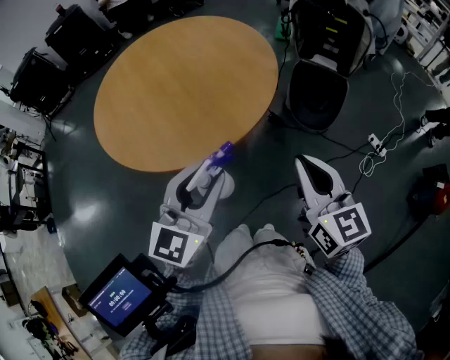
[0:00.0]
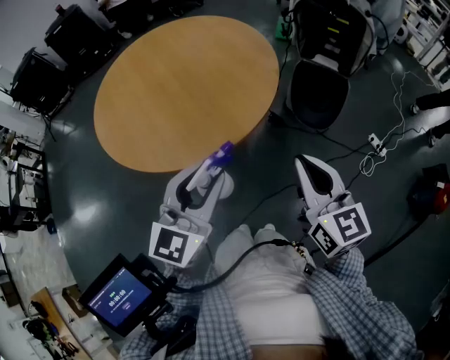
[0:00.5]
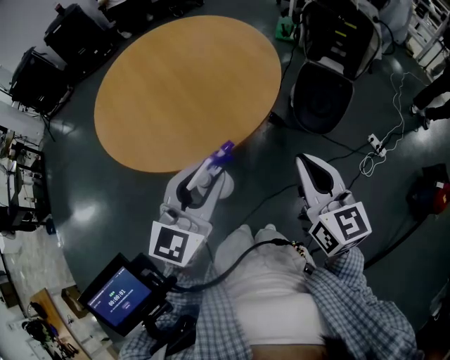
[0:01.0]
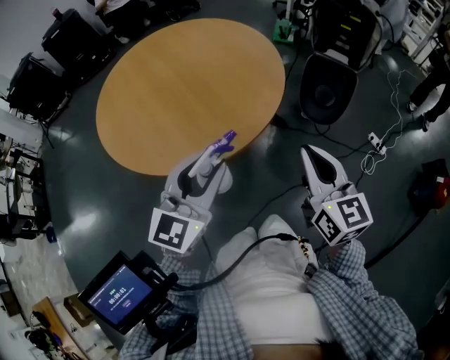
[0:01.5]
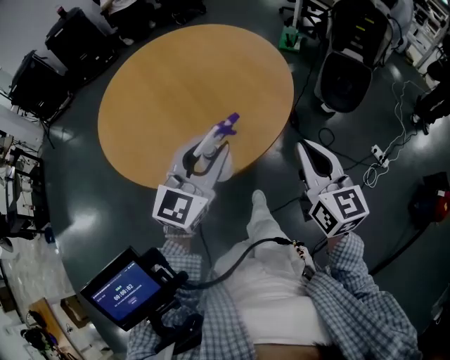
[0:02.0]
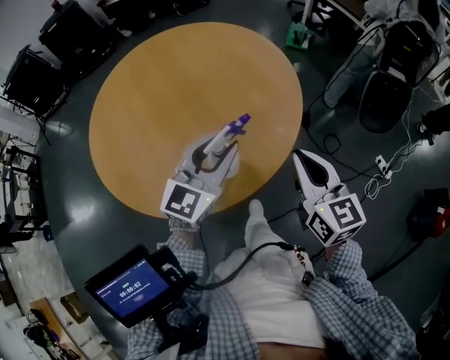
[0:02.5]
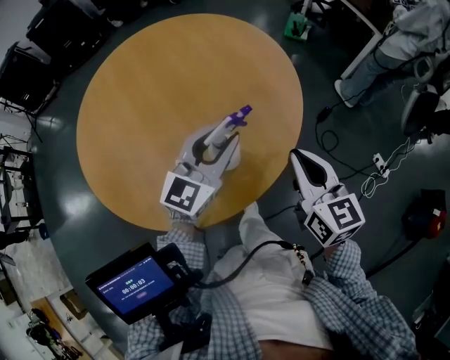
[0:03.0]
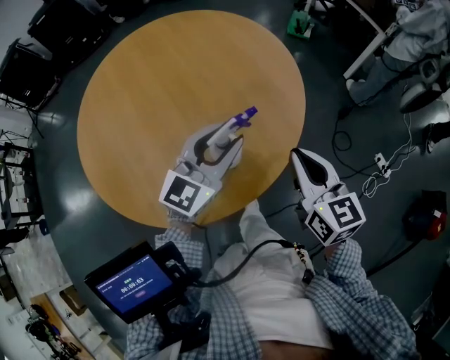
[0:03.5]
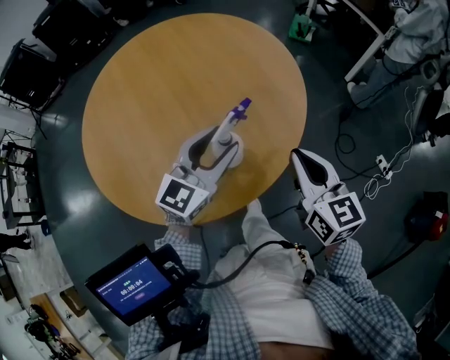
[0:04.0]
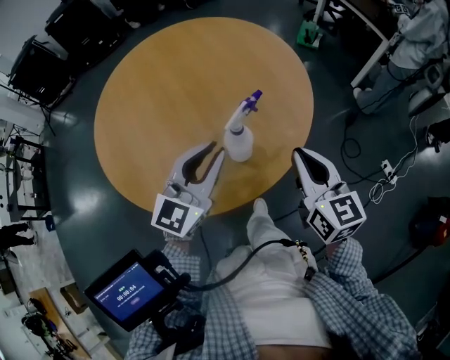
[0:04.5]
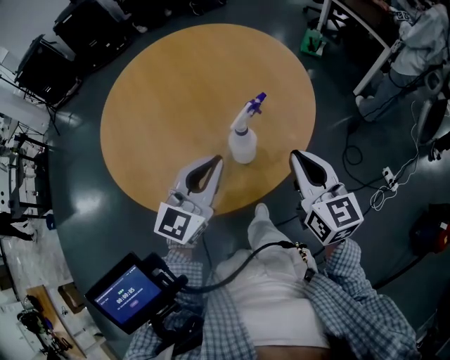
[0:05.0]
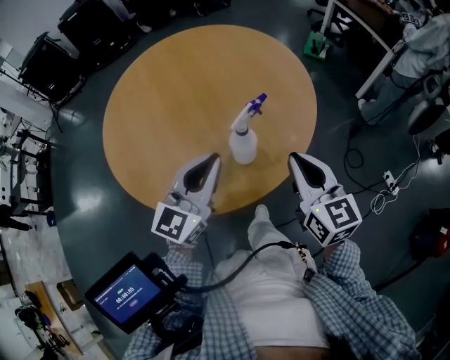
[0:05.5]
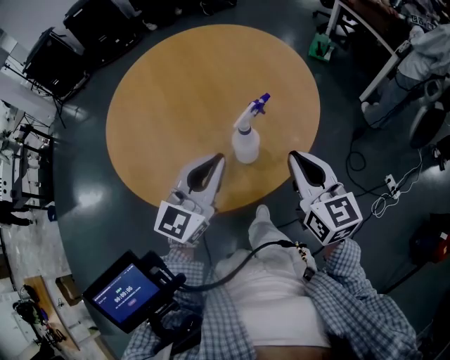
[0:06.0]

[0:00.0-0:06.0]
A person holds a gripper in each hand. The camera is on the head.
0:00.0 to 0:02.0: The right gripper shifts approximately 10 cm forward; the left gripper travels forward and to the left by about 15 cm.
0:02.0 to 0:04.0: Both grippers travel together forward and downward, roughly 15 cm.
0:04.0 to 0:06.0: The left gripper goes approximately 10 cm backward and upward, and closes its fingers. Meanwhile the right gripper shifts by about 5 cm.

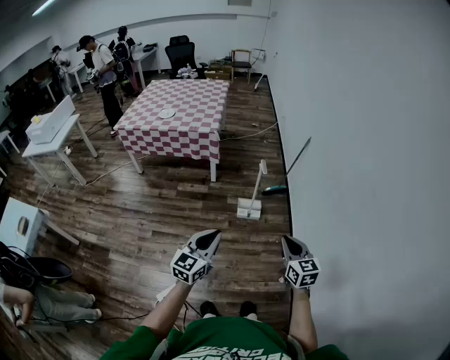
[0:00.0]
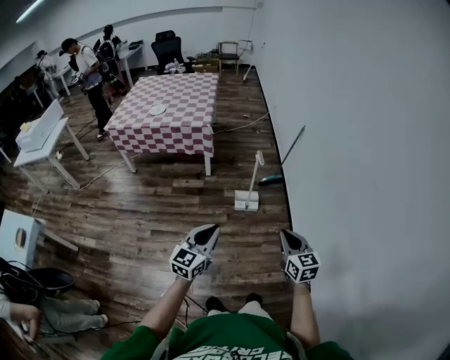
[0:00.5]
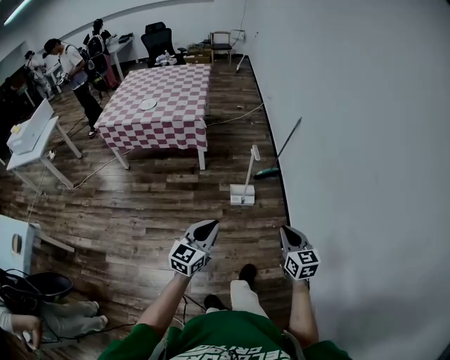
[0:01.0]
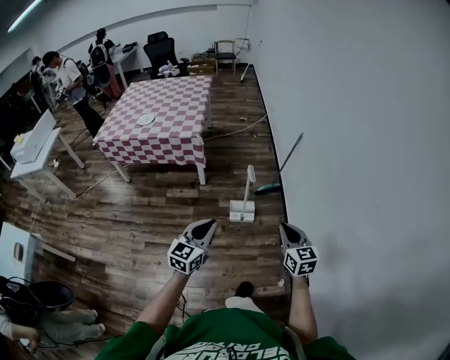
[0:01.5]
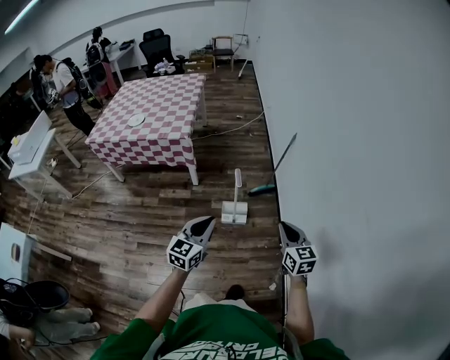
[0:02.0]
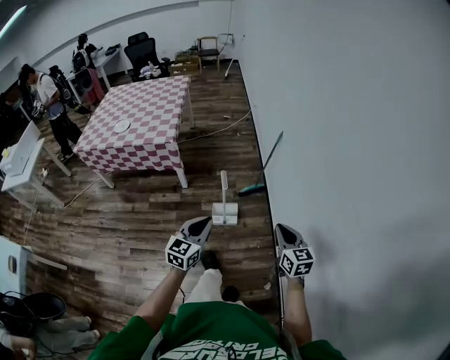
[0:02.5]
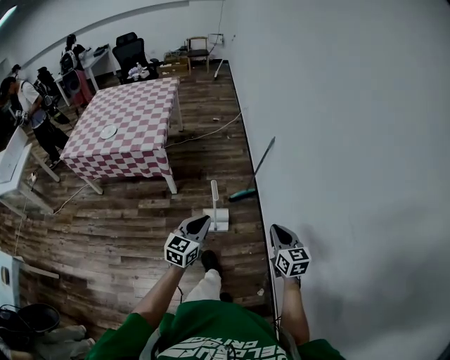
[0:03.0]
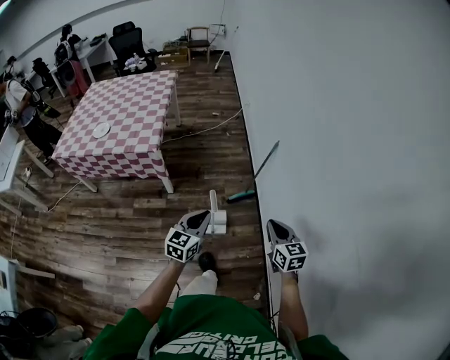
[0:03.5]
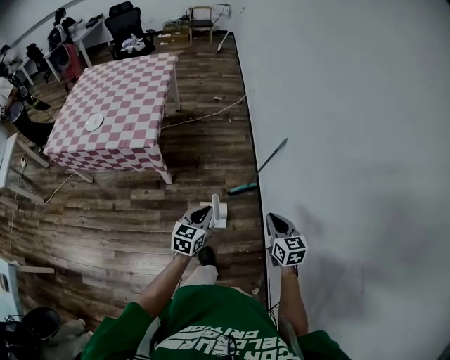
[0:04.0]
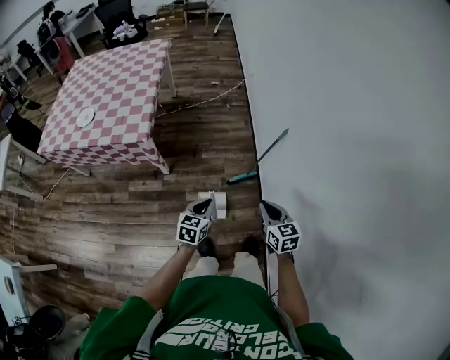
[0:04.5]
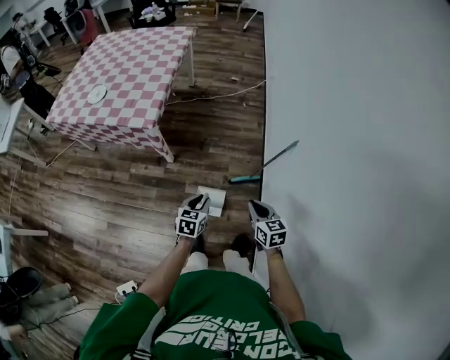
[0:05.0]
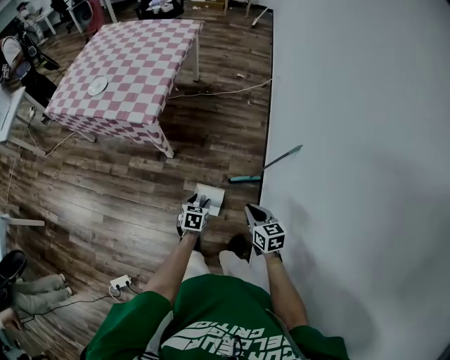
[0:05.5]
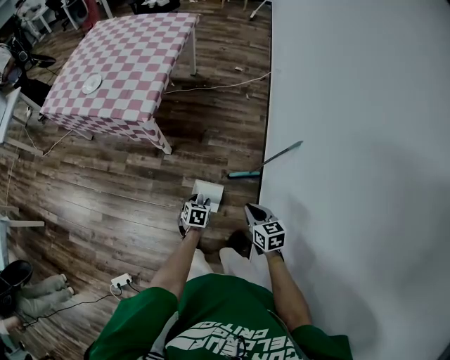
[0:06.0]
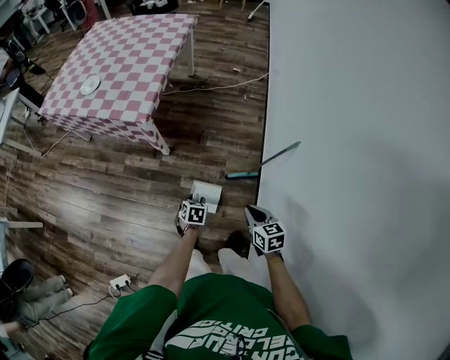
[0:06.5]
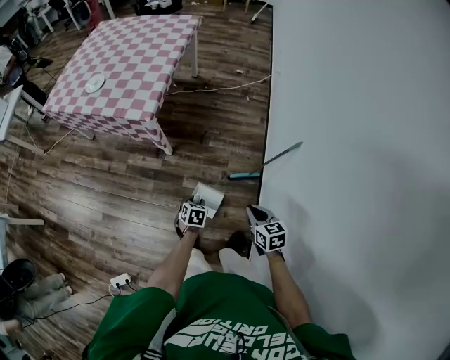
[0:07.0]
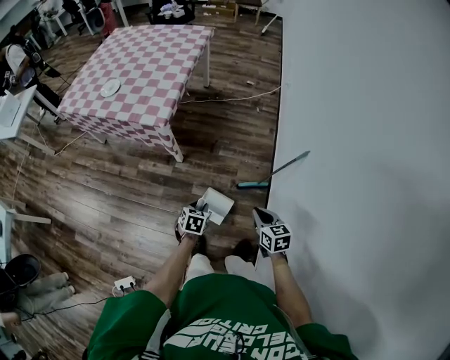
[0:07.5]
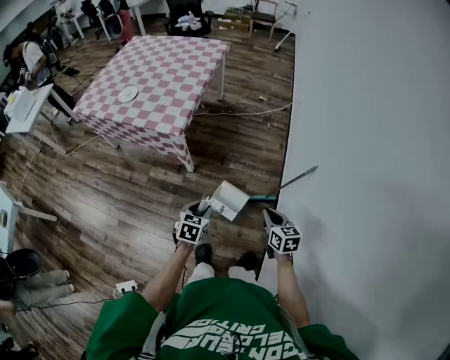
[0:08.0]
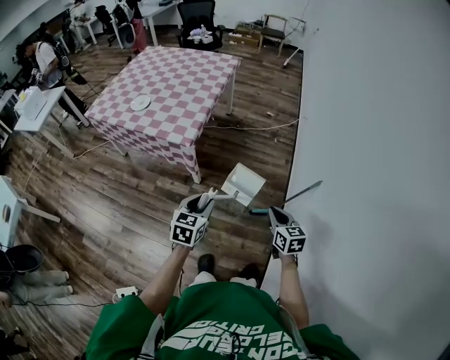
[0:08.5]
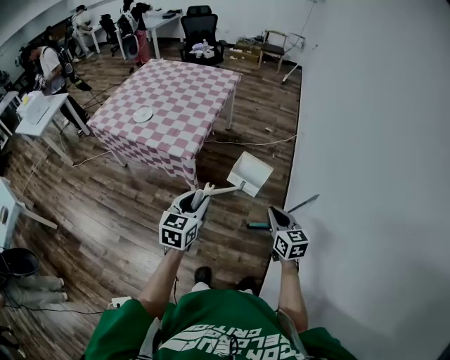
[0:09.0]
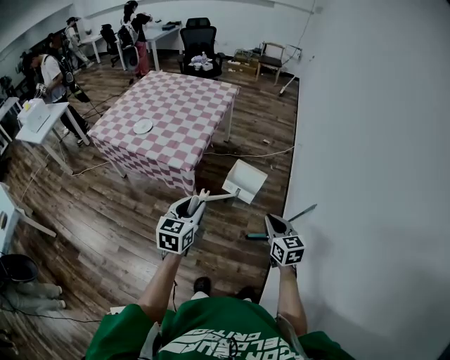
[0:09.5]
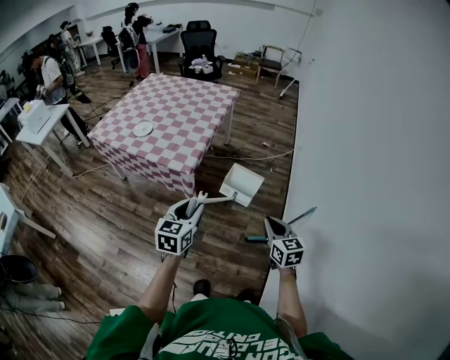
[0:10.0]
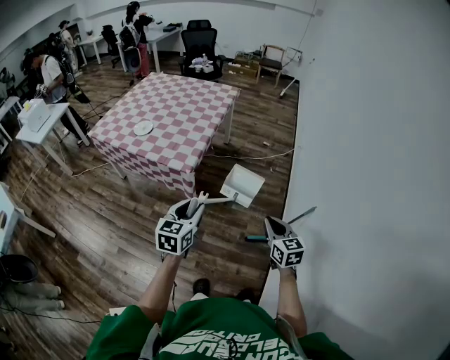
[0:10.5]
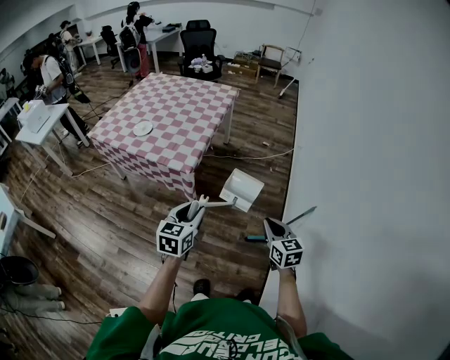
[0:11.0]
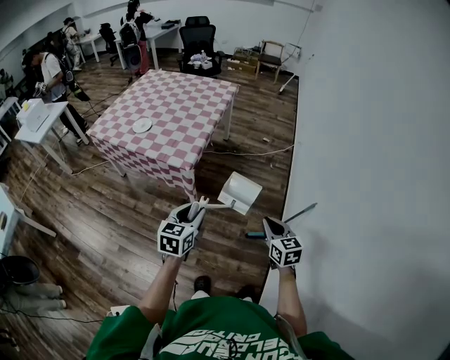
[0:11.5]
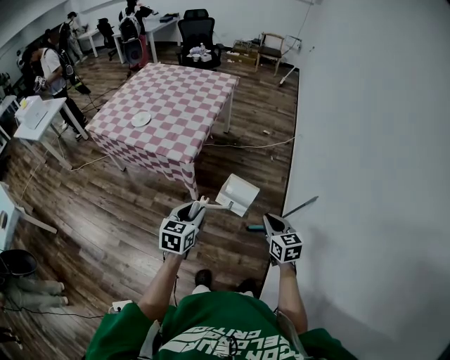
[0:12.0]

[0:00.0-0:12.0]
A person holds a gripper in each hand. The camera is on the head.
0:00.0 to 0:02.0: The right gripper moves forward and to the right, roughly 25 cm; the left gripper moves forward, approximately 25 cm.
0:02.0 to 0:04.0: Both grippers travel together forward, some 30 cm.
0:04.0 to 0:06.0: The left gripper goes about 25 cm downward and forward, angles its fingers downward, by some 30 degrees, and opens up. The right gripper heads forward and downward, covering some 20 cm, and rotates approximately 20 degrees.
0:06.0 to 0:08.0: The right gripper travels upward by about 5 cm. The left gripper heads upward and to the left, covering roughly 20 cm.
0:08.0 to 0:10.0: The right gripper heads upward and forward, covering about 15 cm. The left gripper is displaced upward by about 20 cm, and rotates roughly 30 degrees.
0:10.0 to 0:12.0: The left gripper shifts approximately 5 cm downward.

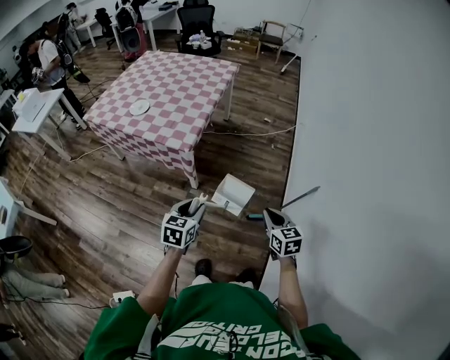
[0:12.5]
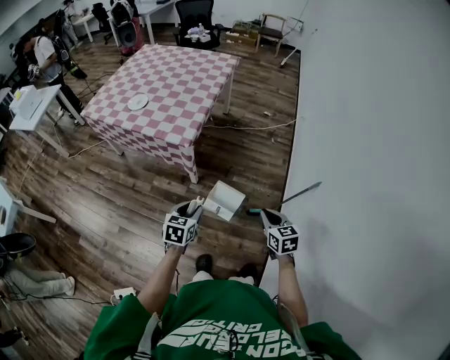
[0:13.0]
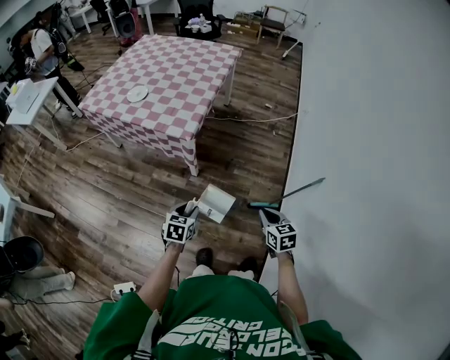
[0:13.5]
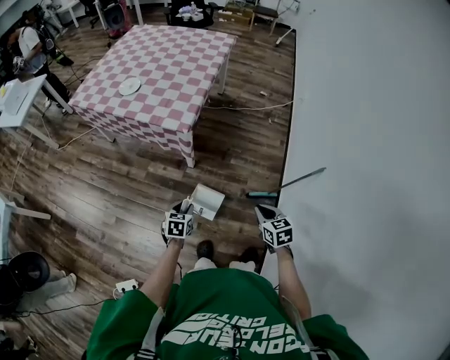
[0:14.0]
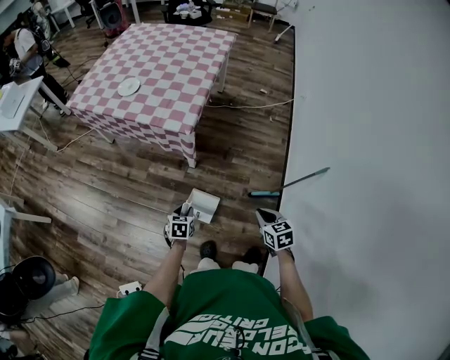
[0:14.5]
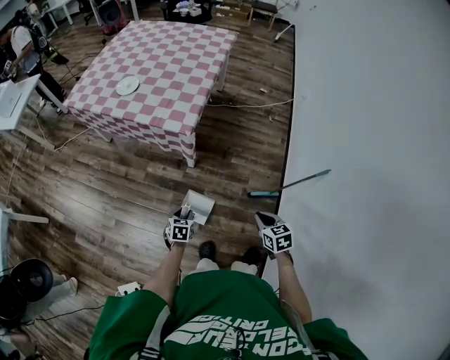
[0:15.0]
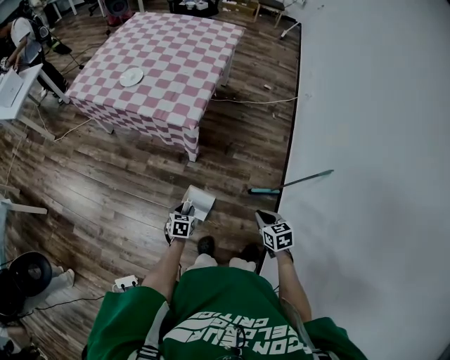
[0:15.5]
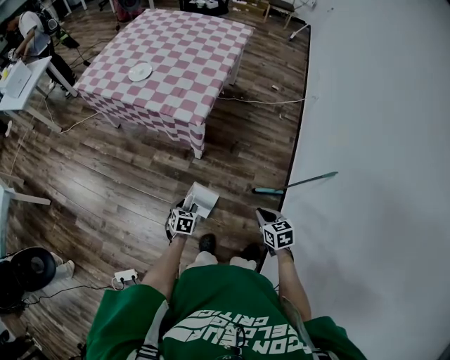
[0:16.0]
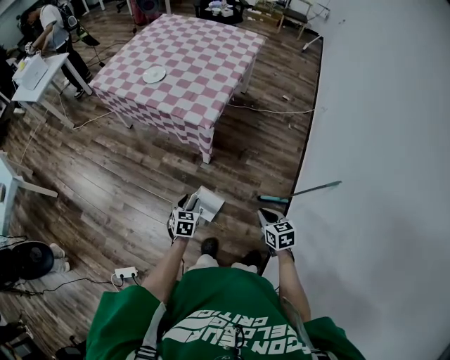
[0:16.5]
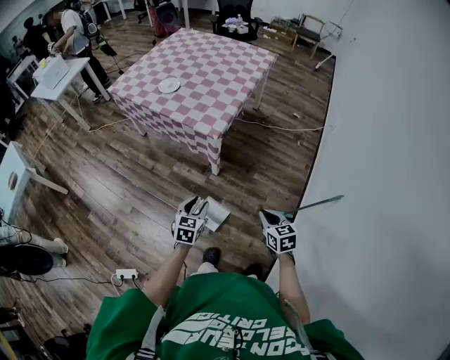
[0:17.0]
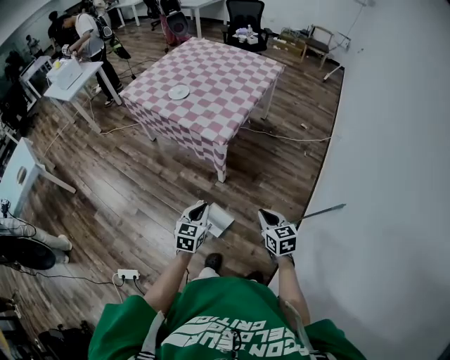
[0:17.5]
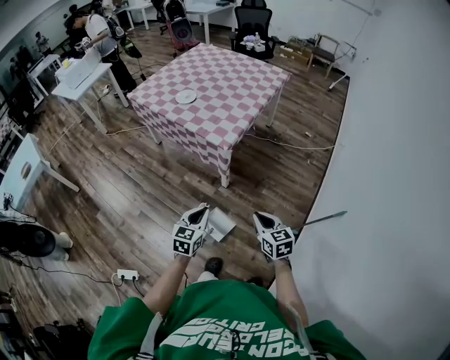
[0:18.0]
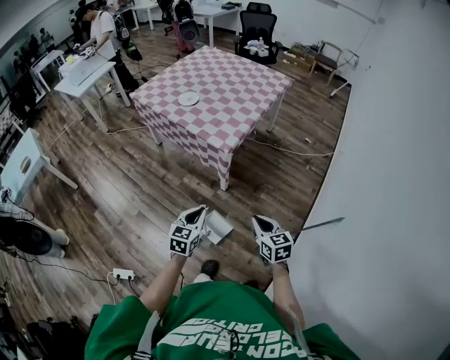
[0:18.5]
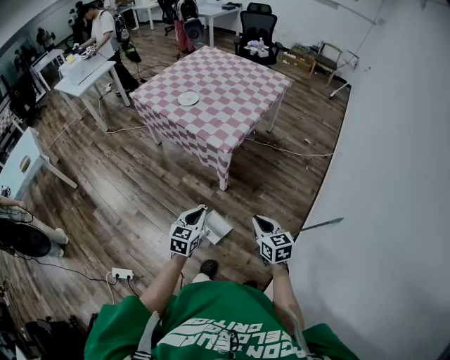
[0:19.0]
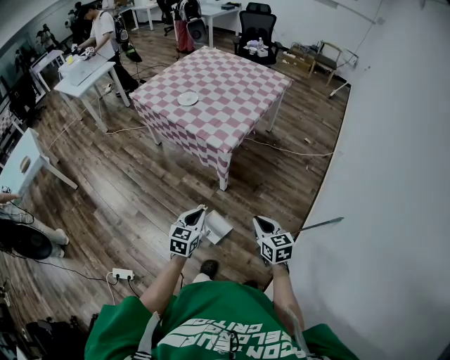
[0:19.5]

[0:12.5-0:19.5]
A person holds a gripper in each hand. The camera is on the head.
0:12.5 to 0:14.5: The right gripper heads downward and to the left, covering roughly 15 cm; the left gripper travels downward and to the left by approximately 25 cm, and turns by approximately 20 degrees.
0:14.5 to 0:16.0: The grippers move only a little.
0:16.0 to 0:17.5: The left gripper shifts some 20 cm upward, rotates approximately 30 degrees, and closes up, while the right gripper is displaced upward by some 10 cm.
0:17.5 to 0:19.5: The grippers make only small movements.

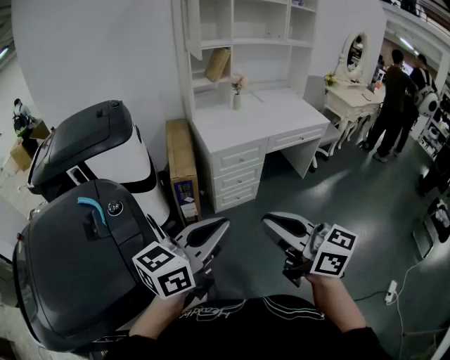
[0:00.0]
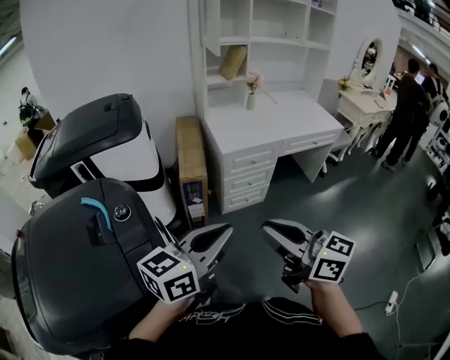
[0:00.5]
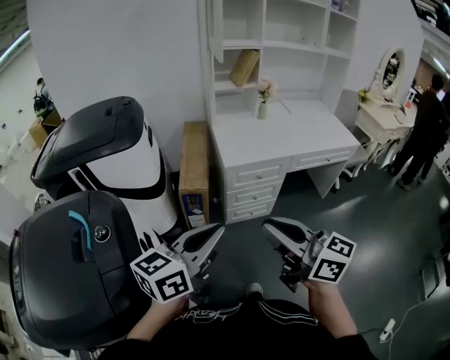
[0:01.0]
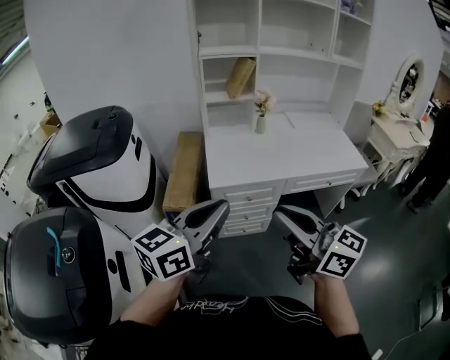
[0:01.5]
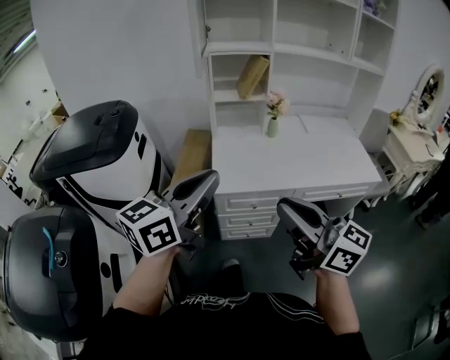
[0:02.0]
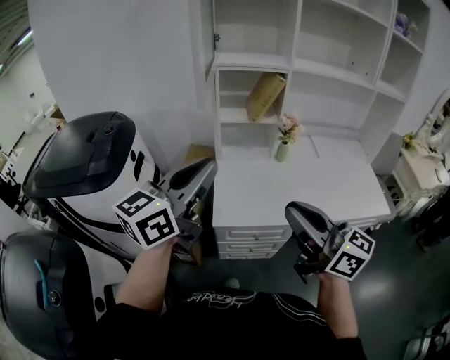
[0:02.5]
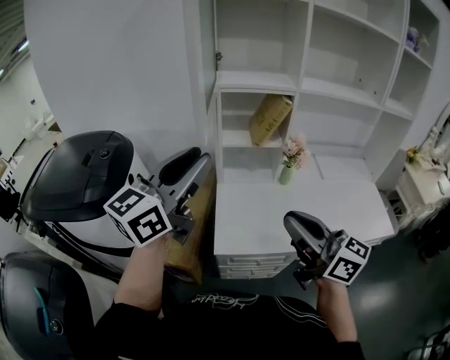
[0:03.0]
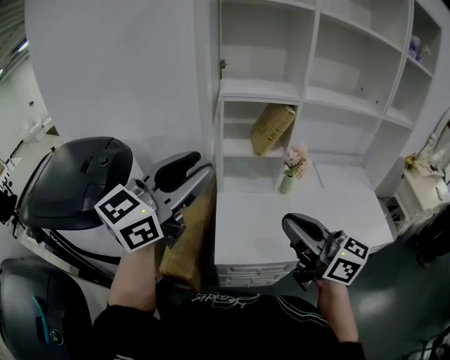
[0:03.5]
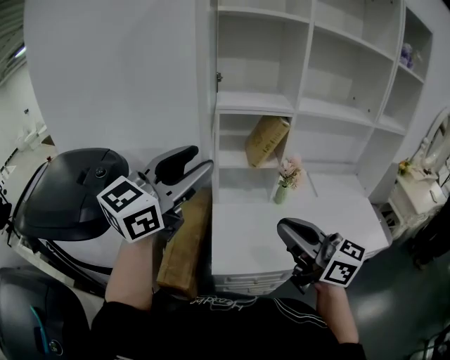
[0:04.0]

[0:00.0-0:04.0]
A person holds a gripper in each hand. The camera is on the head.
0:00.0 to 0:02.0: The pair of grippers is taken forward and to the right, some 40 cm. The left gripper swivels about 20 degrees.
0:02.0 to 0:04.0: The two grippers go some 30 cm forward. The left gripper swivels approximately 20 degrees, and opens up.
